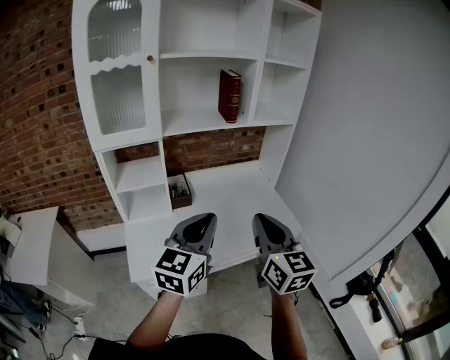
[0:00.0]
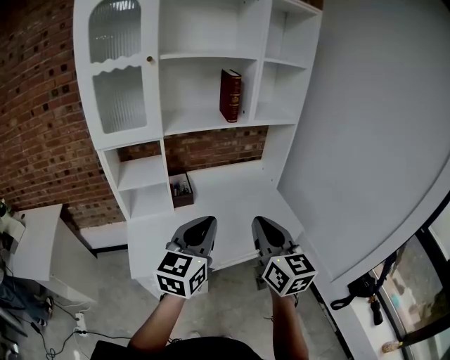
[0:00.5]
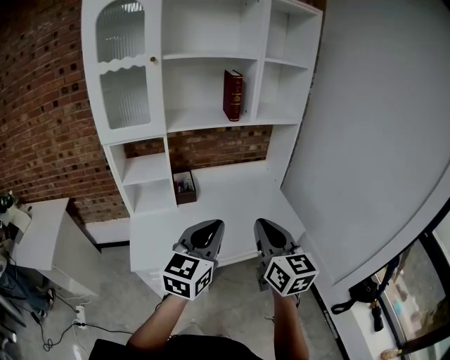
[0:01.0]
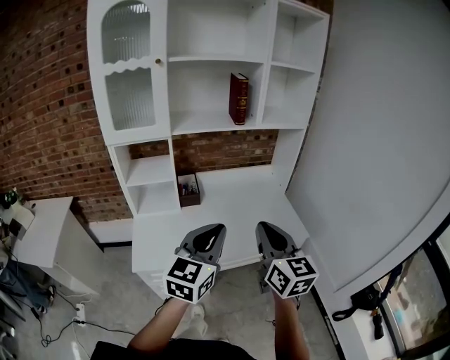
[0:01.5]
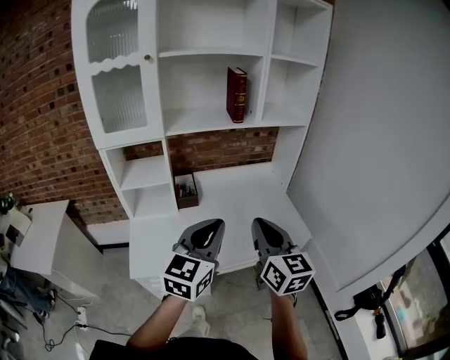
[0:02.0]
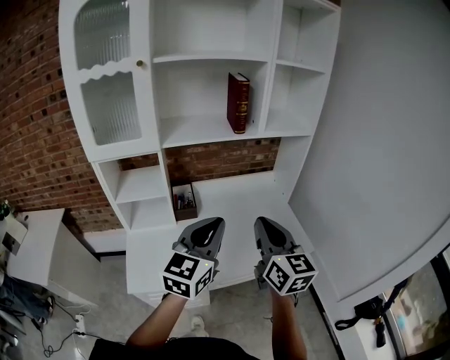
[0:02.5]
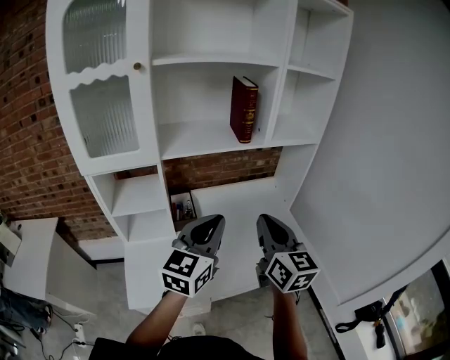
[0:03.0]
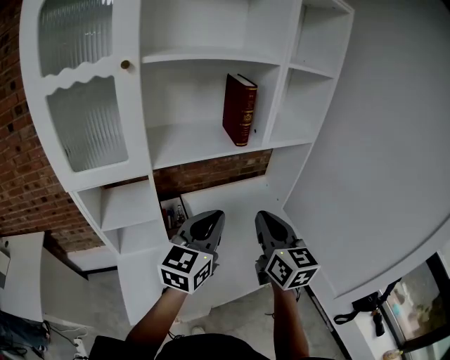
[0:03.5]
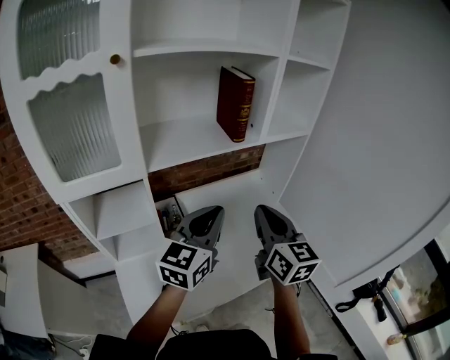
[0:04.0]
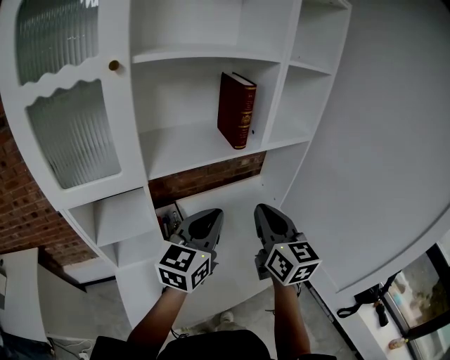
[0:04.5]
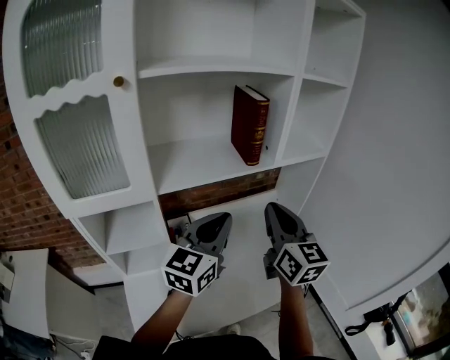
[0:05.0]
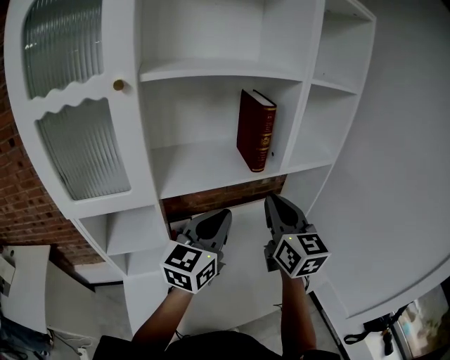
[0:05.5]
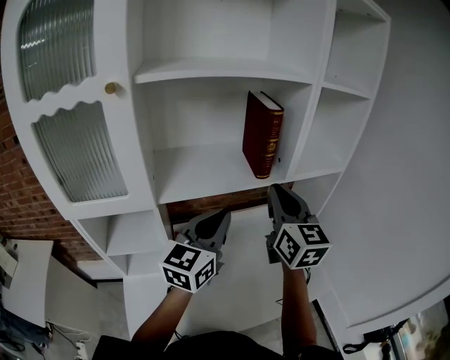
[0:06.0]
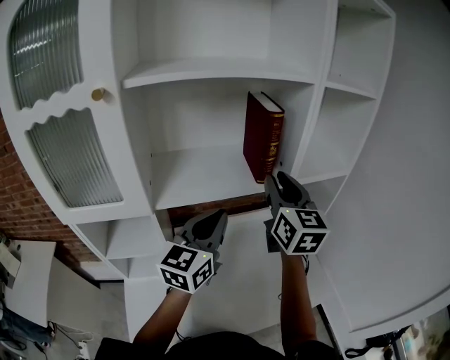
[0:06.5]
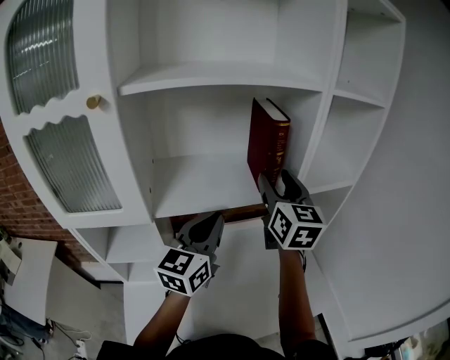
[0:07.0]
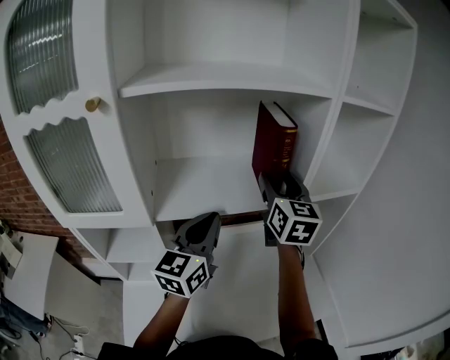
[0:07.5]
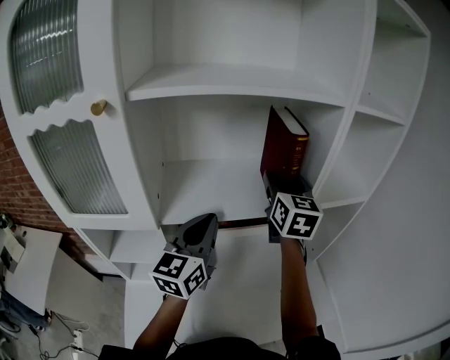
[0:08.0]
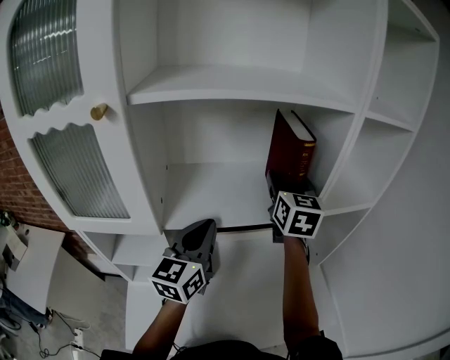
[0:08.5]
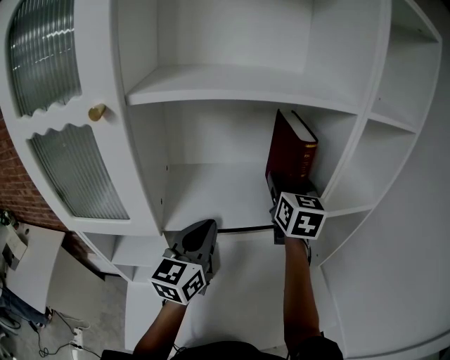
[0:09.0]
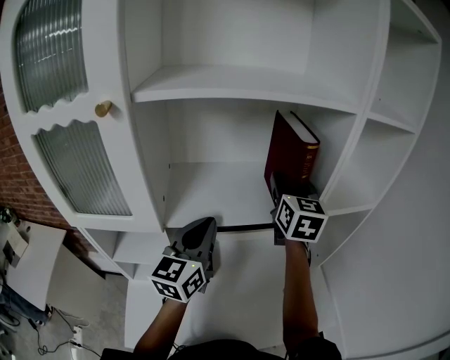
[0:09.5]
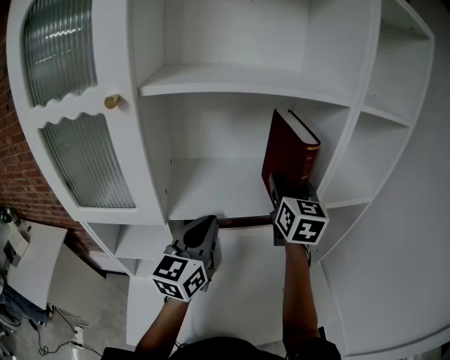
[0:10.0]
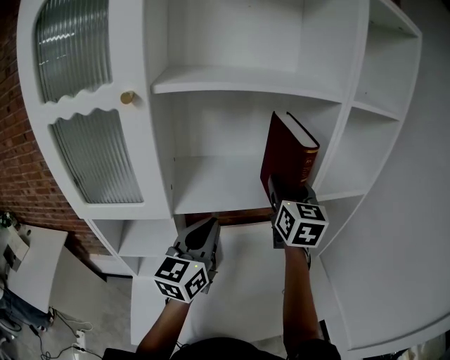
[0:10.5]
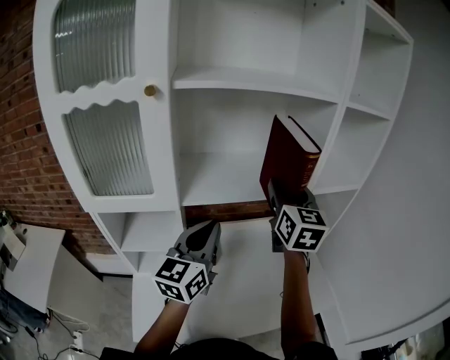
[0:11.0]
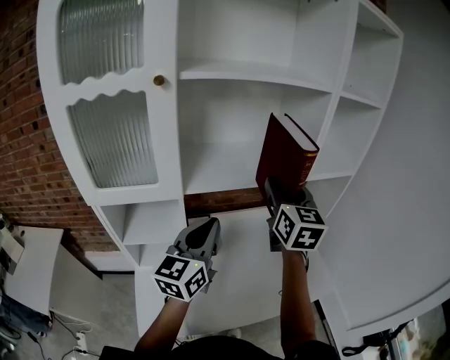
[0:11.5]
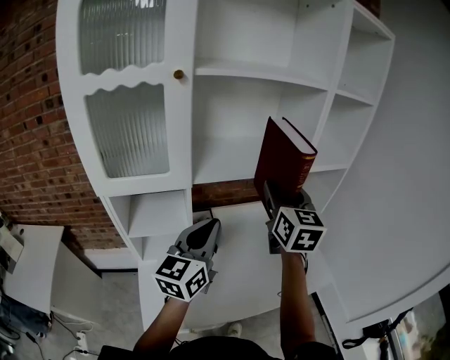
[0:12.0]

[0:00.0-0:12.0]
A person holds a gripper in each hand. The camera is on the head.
0:00.0 to 0:02.0: The left gripper changes place by some 5 cm. The right gripper changes place by about 5 cm.
0:02.0 to 0:04.0: Both grippers move forward, some 20 cm.
0:04.0 to 0:06.0: The right gripper goes approximately 15 cm forward and upward. The left gripper goes approximately 10 cm forward.
0:06.0 to 0:08.0: The left gripper is displaced forward and to the left by roughly 10 cm. The right gripper shifts approximately 15 cm forward, and opens its fingers.
0:08.0 to 0:10.0: There are only small adjustments of the grippers.
0:10.0 to 0:12.0: Both grippers travel together backward, some 15 cm.

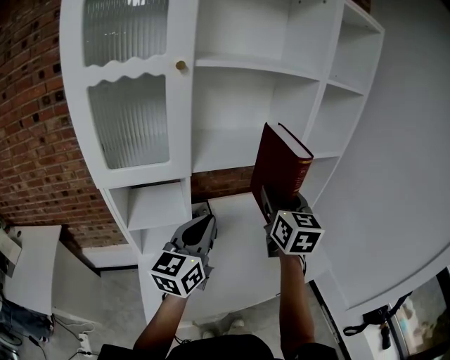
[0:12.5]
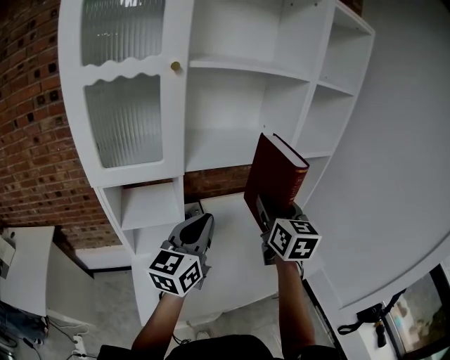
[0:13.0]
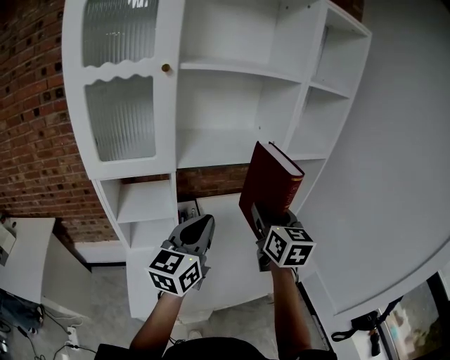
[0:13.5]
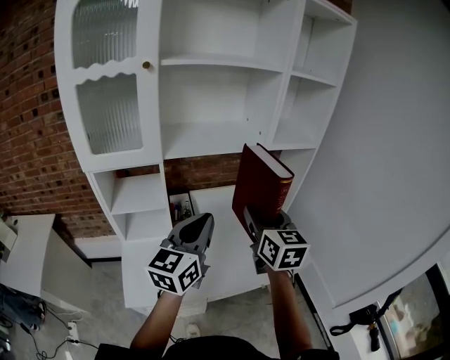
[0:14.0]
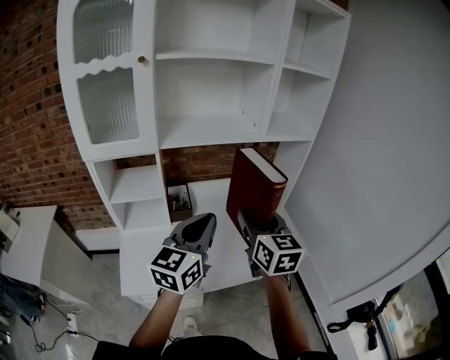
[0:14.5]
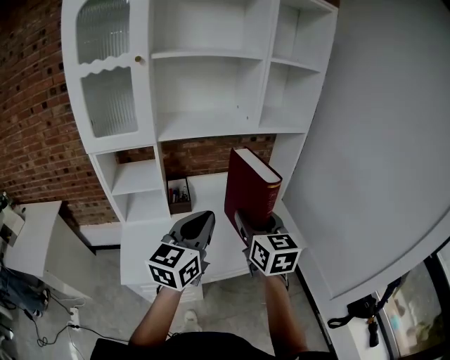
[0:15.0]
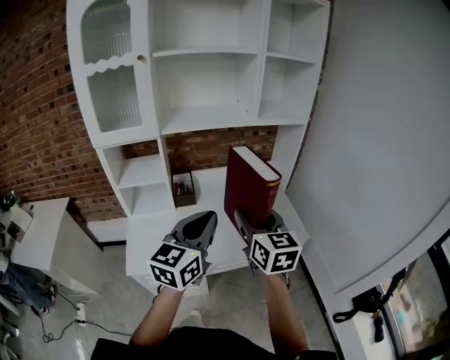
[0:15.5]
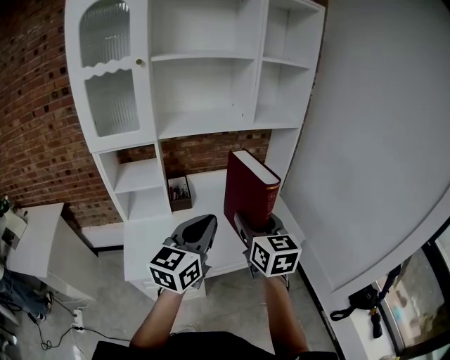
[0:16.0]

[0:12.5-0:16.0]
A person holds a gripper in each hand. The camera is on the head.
0:12.5 to 0:14.5: The right gripper goes about 15 cm backward, to the right and downward. The left gripper is displaced to the right and backward by some 15 cm.
0:14.5 to 0:16.0: The grippers both shift backward by roughly 10 cm.

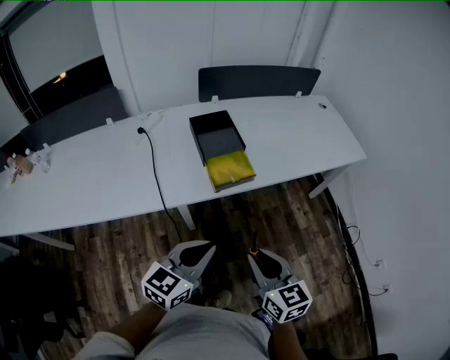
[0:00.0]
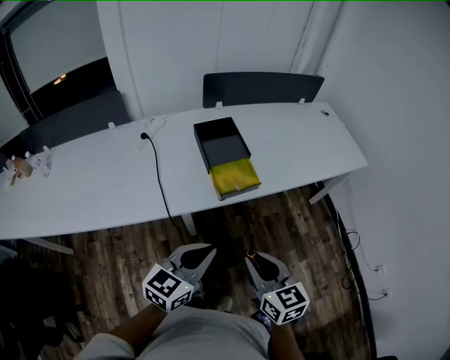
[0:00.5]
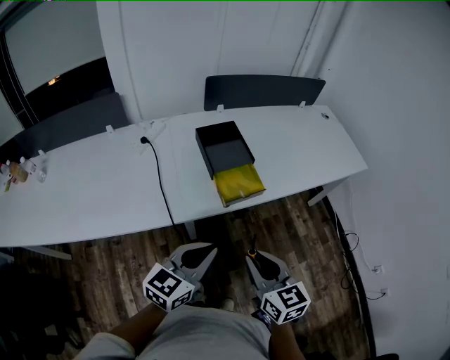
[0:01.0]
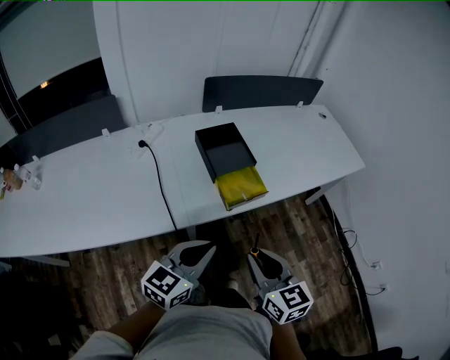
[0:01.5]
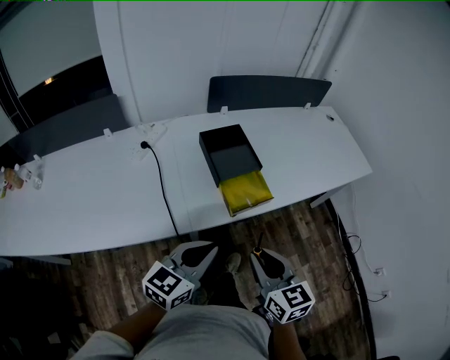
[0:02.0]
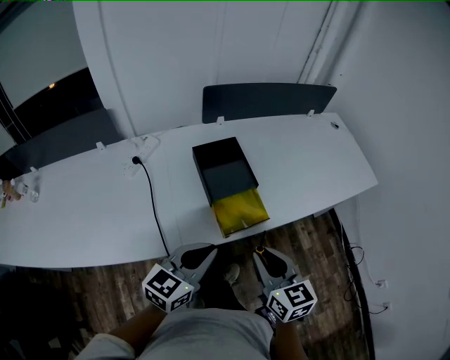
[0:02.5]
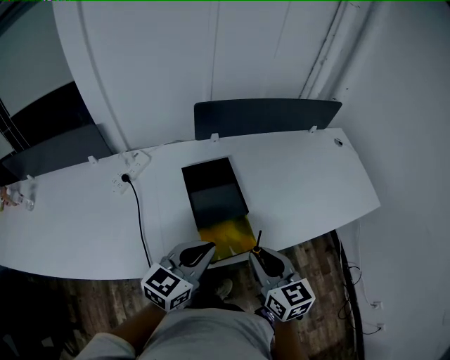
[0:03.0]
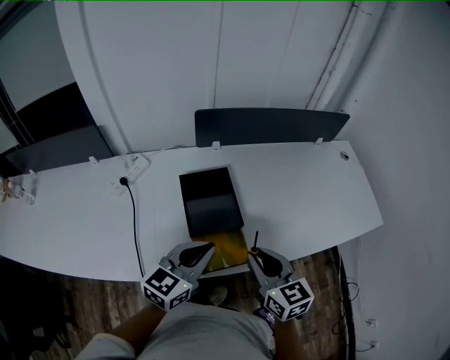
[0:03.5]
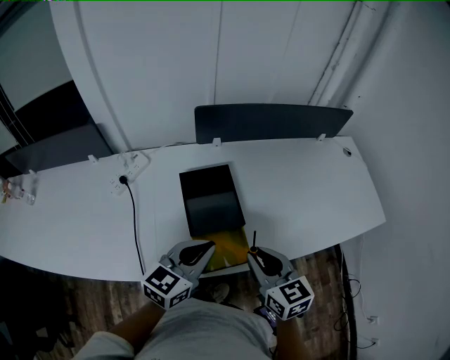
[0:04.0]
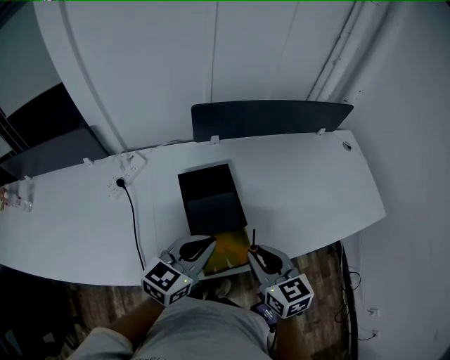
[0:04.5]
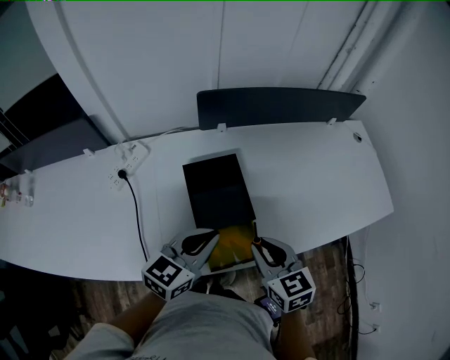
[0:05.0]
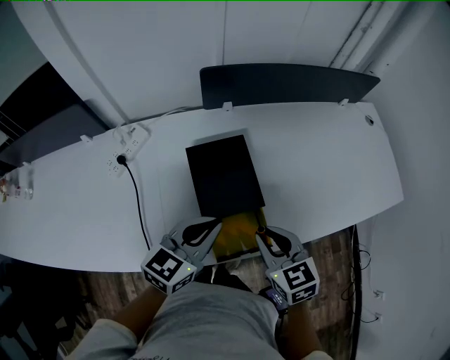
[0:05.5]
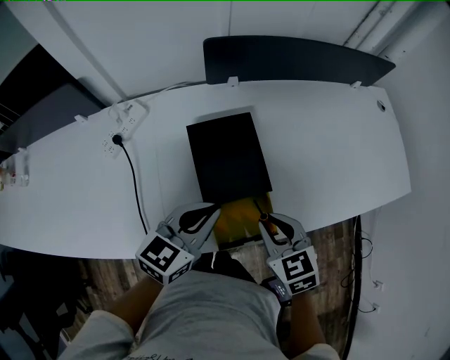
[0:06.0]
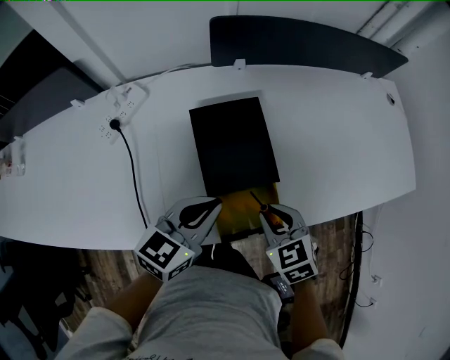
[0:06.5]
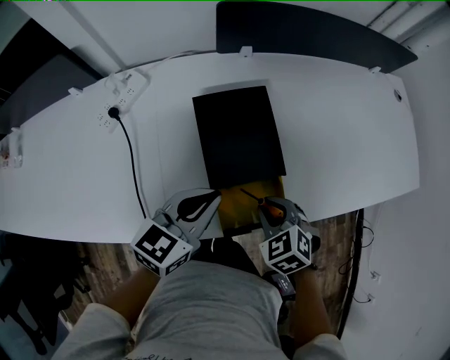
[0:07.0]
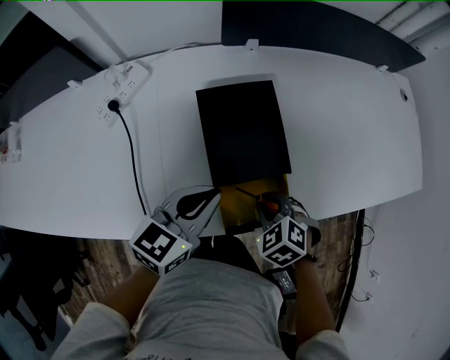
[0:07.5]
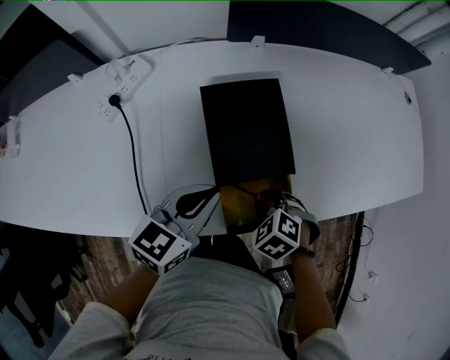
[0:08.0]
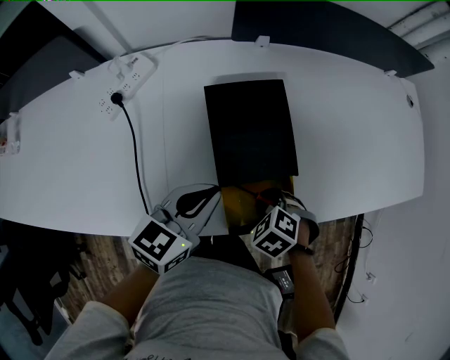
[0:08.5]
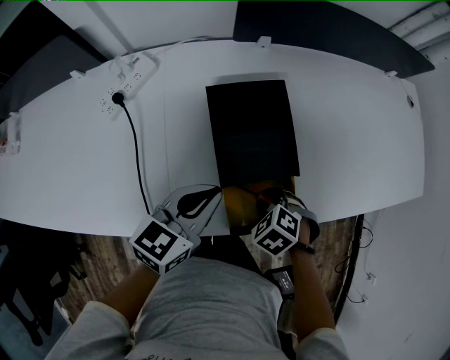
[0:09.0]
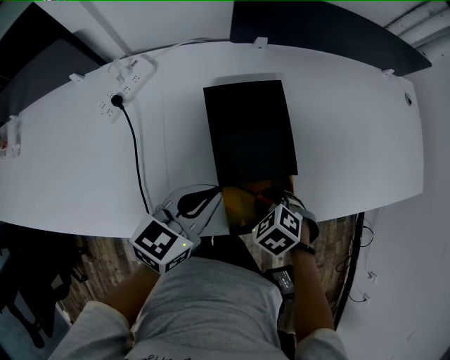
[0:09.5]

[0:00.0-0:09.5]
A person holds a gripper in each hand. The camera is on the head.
0:00.0 to 0:02.0: Both grippers move to the left and forward, approximately 15 cm.
0:02.0 to 0:04.0: Both grippers move forward, about 25 cm.
0:04.0 to 0:05.5: The left gripper shifts by some 5 cm; the right gripper heads downward, covering approximately 5 cm.
0:05.5 to 0:07.5: The left gripper shifts approximately 5 cm downward. The right gripper shifts about 15 cm downward, and tips its fingers downward by about 30 degrees.
0:07.5 to 0:09.5: The grippers make only small movements.

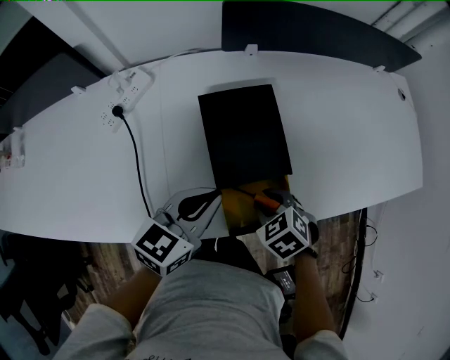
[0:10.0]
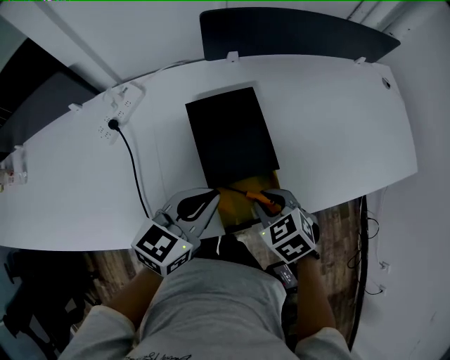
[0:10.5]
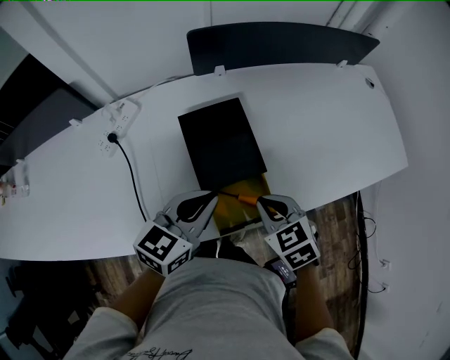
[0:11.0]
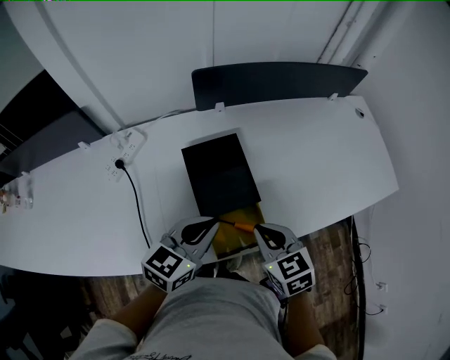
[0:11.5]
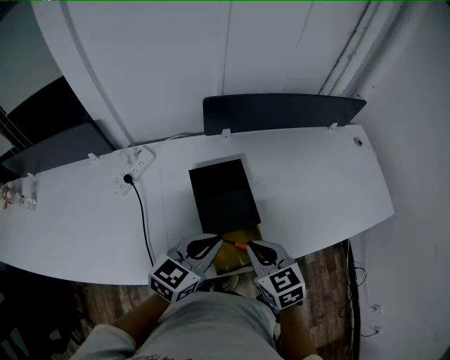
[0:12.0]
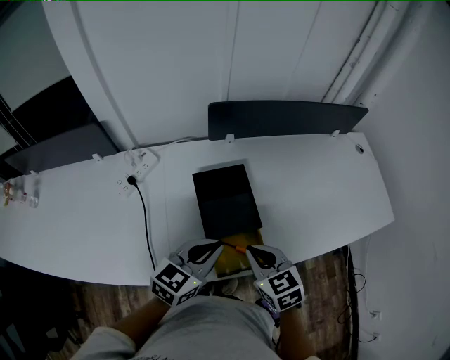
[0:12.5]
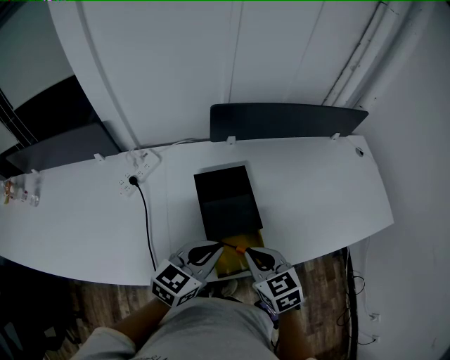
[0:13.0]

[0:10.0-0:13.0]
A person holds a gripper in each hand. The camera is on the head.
0:10.0 to 0:11.5: The right gripper travels upward by roughly 15 cm, rotates approximately 40 degrees, and closes, while the left gripper goes about 5 cm upward.
0:11.5 to 0:13.0: There are only small adjustments of the grippers.
